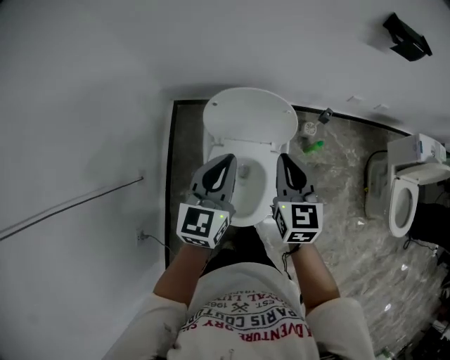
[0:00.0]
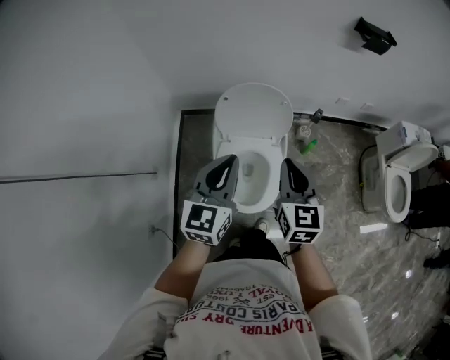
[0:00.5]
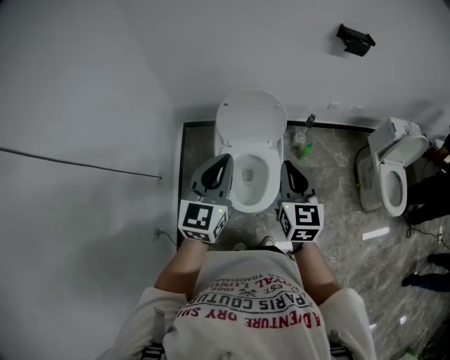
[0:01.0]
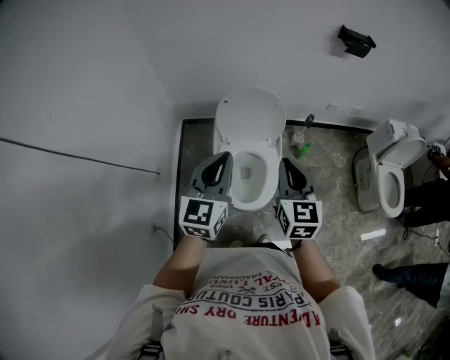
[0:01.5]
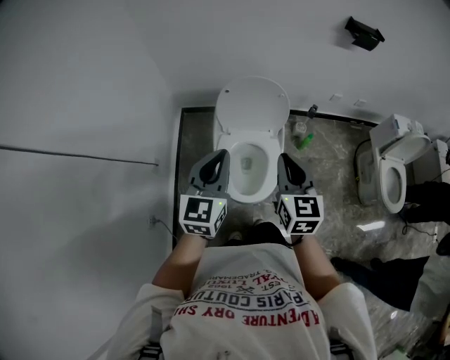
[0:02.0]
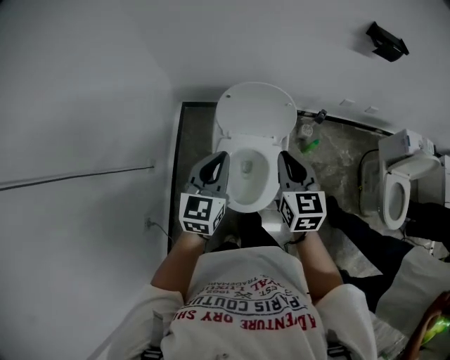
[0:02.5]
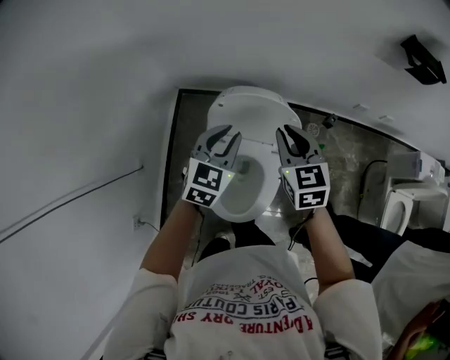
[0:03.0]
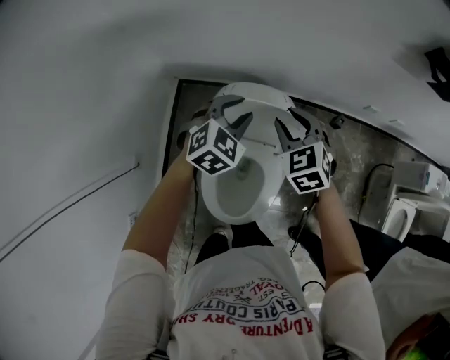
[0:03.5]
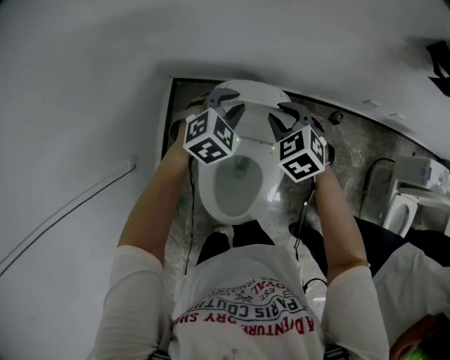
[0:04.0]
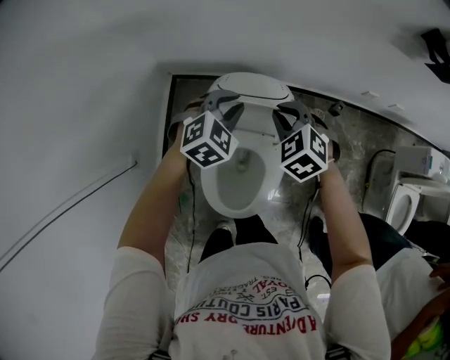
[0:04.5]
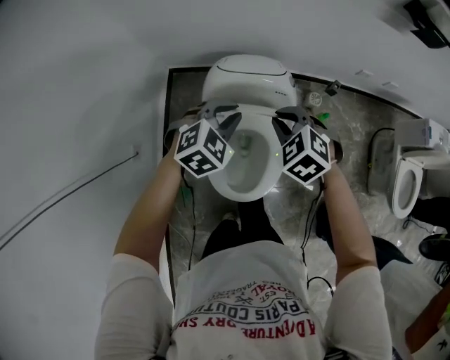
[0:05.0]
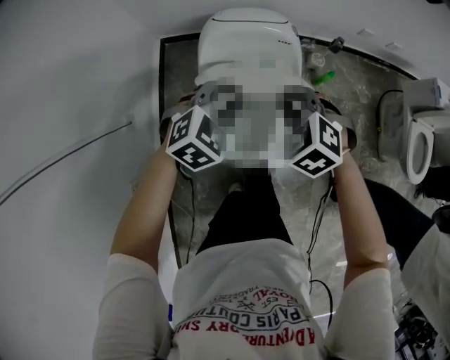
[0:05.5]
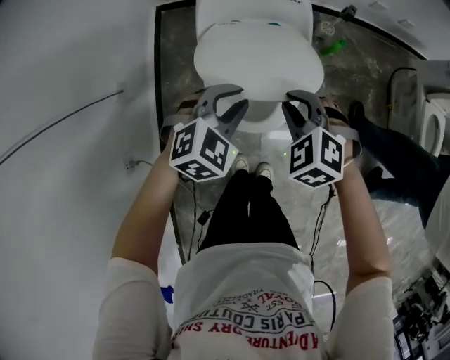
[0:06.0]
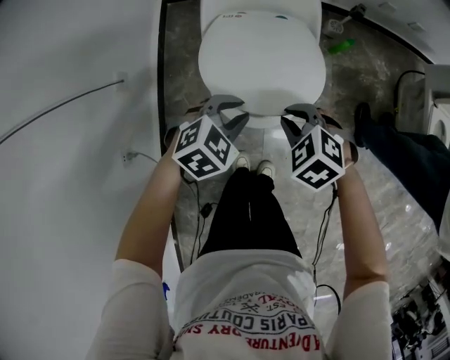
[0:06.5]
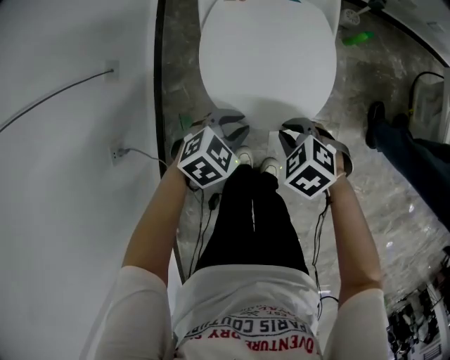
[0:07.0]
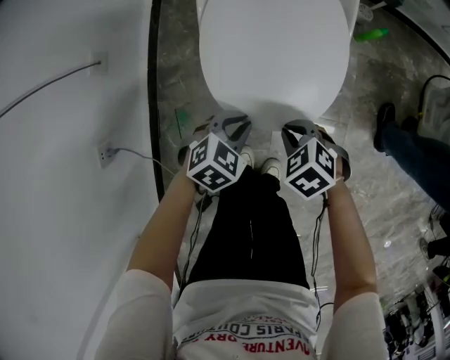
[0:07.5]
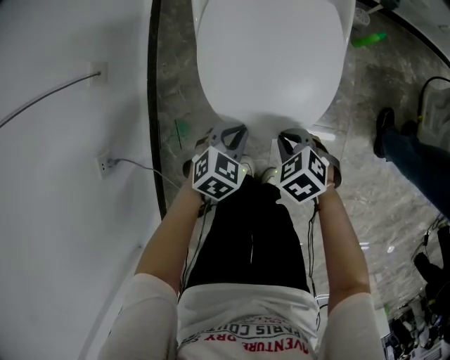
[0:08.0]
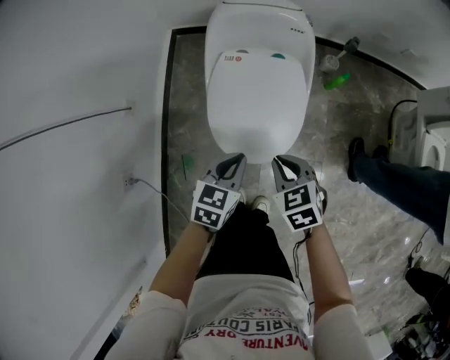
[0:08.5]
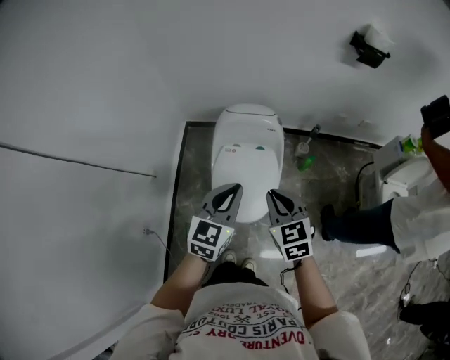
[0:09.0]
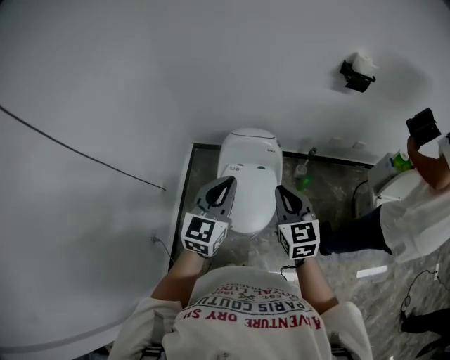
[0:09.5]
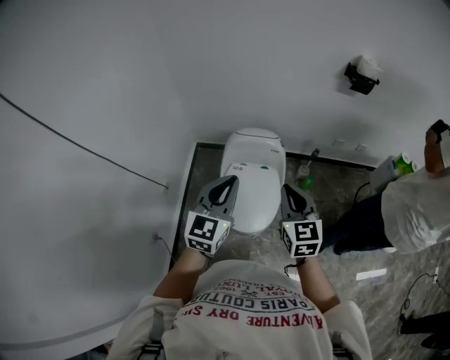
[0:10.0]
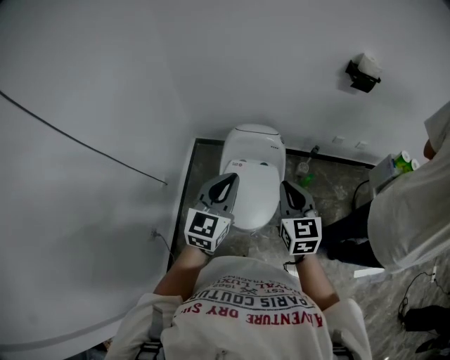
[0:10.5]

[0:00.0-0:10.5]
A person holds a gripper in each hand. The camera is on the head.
0:00.0 to 0:02.0: Both grippers travel together backward and upward, some 25 cm.
0:02.0 to 0:04.0: Both grippers are carried forward, some 40 cm. The two grippers go roughly 20 cm downward. The left gripper points its fingers about 40 degrees further downward, and opens. Meanwhile the right gripper tips its fingers downward by roughly 30 degrees, and opens up.
0:04.0 to 0:06.5: The pair of grippers is taken backward, about 40 cm. The left gripper turns by some 20 degrees.
0:06.5 to 0:08.5: The left gripper reaches some 25 cm downward, then returns, and turns by roughly 40 degrees. Meanwhile the right gripper reaches about 25 cm downward, then returns, and changes its angle by about 30 degrees.
0:08.5 to 0:10.5: The two grippers go roughly 50 cm upward. The left gripper tilts its fingers some 30 degrees upward; the right gripper points its fingers some 40 degrees further upward.

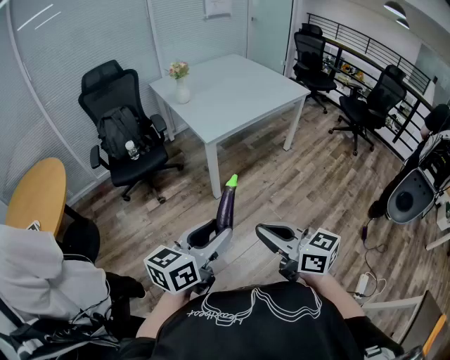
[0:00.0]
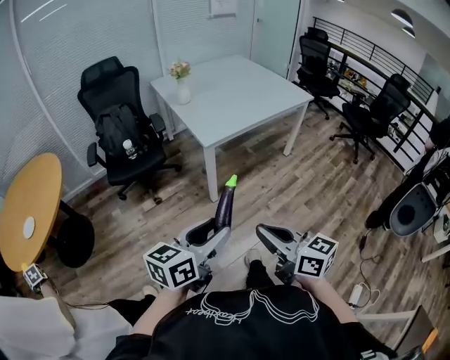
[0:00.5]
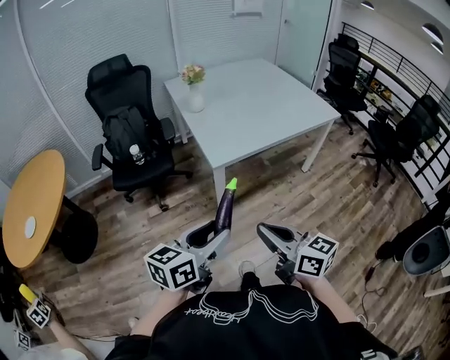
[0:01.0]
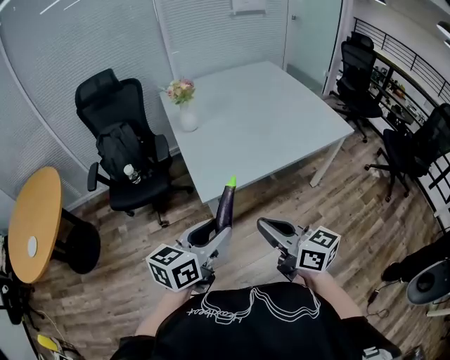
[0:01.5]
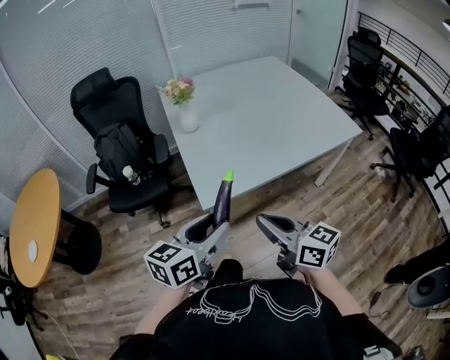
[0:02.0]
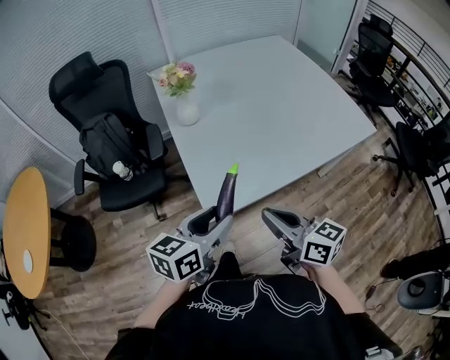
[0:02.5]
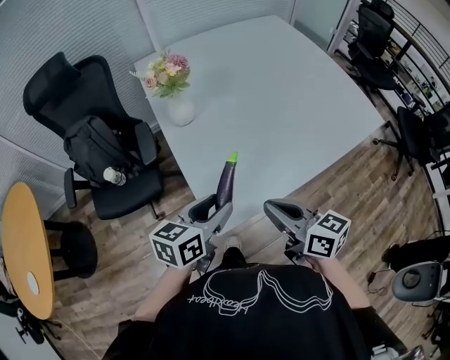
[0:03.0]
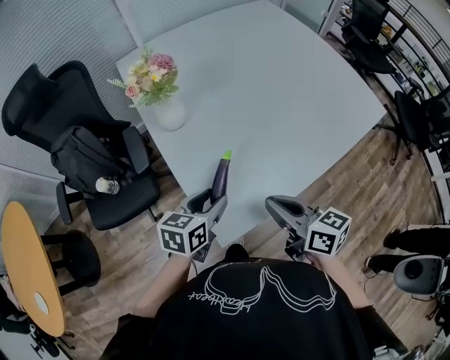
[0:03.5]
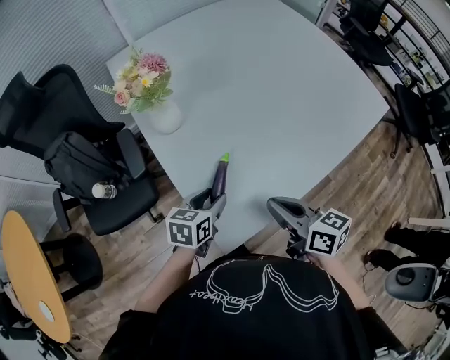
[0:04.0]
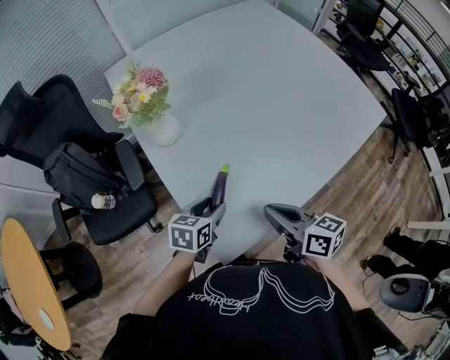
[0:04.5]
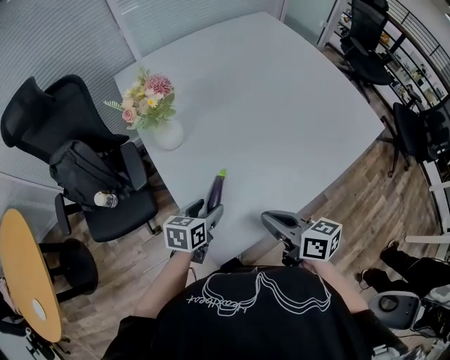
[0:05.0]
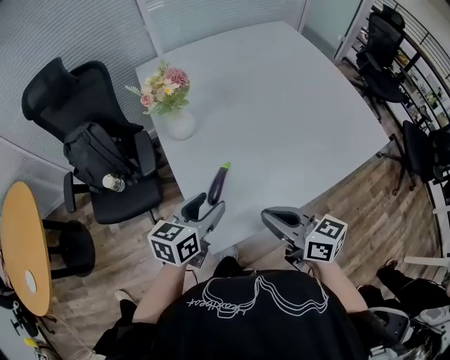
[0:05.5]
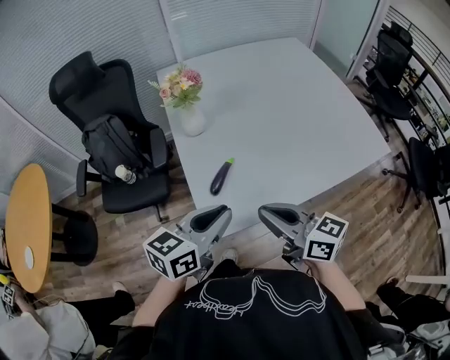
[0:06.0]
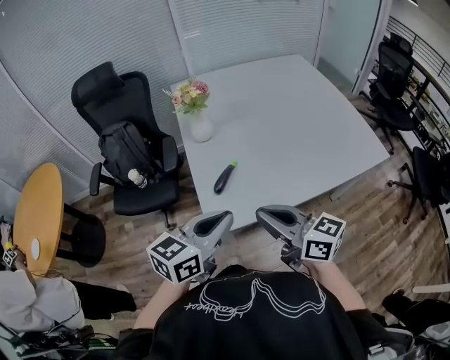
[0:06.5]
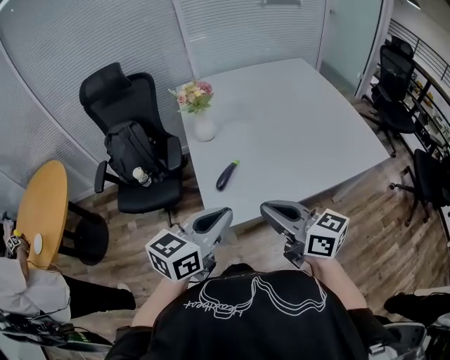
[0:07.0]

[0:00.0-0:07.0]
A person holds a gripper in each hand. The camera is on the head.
0:00.0 to 0:02.0: The pair of grippers is taken forward, some 50 cm.
0:02.0 to 0:03.5: The right gripper shifts approximately 25 cm forward, and rotates some 20 degrees, while the left gripper shifts some 35 cm forward and downward, and swivels about 20 degrees.
0:03.5 to 0:05.0: The left gripper goes about 5 cm downward.
0:05.0 to 0:07.0: The right gripper is displaced upward and backward by approximately 20 cm, and turns by approximately 30 degrees, while the left gripper moves upward and backward, roughly 35 cm, swivels roughly 30 degrees, and closes its fingers.

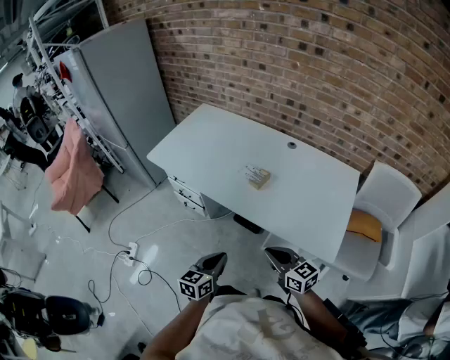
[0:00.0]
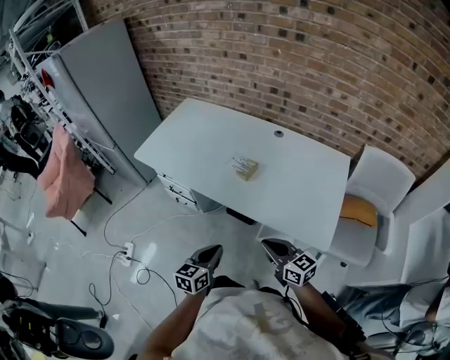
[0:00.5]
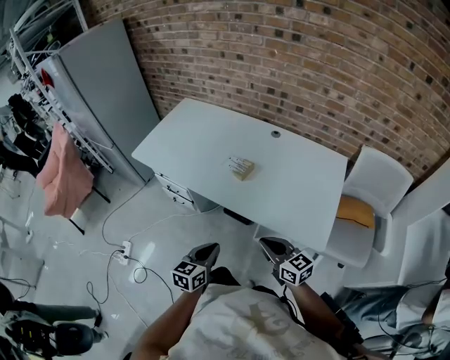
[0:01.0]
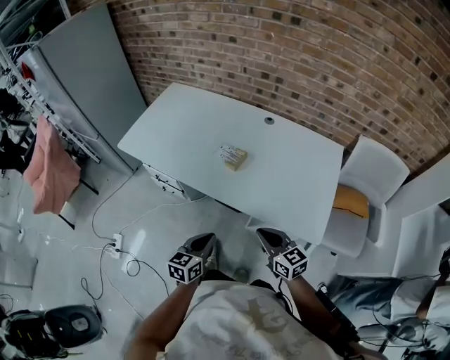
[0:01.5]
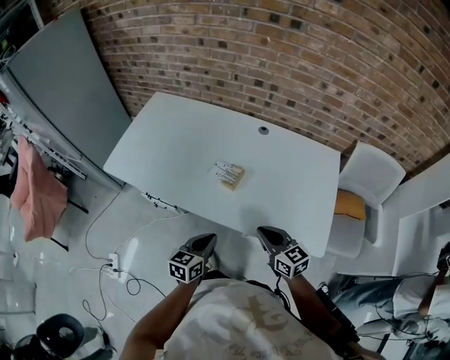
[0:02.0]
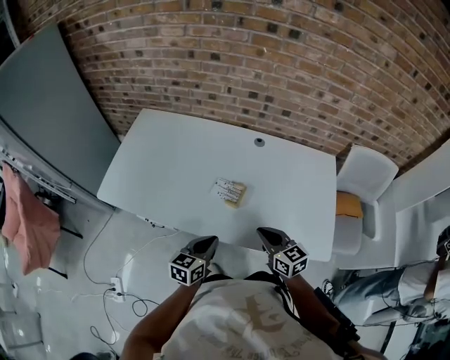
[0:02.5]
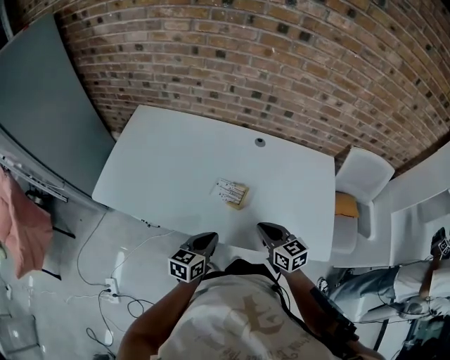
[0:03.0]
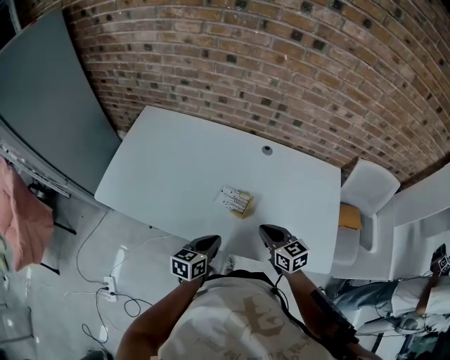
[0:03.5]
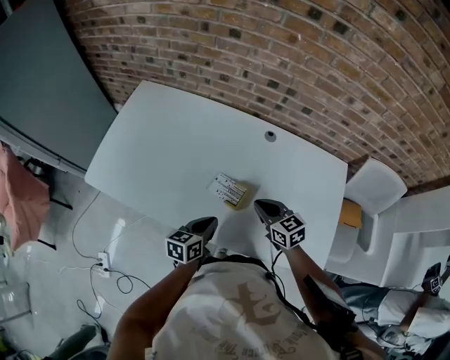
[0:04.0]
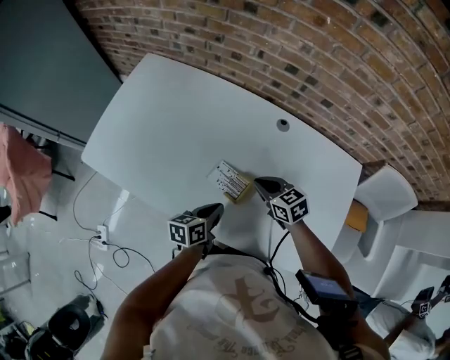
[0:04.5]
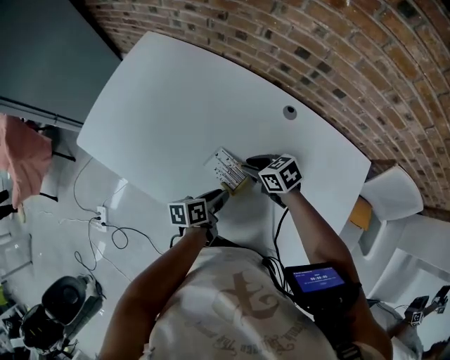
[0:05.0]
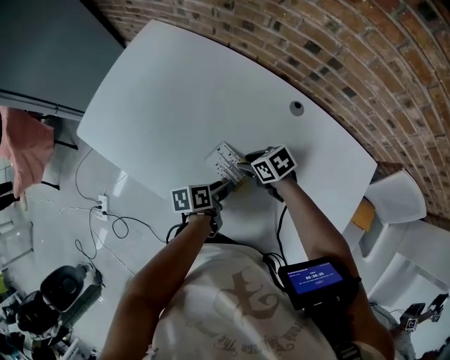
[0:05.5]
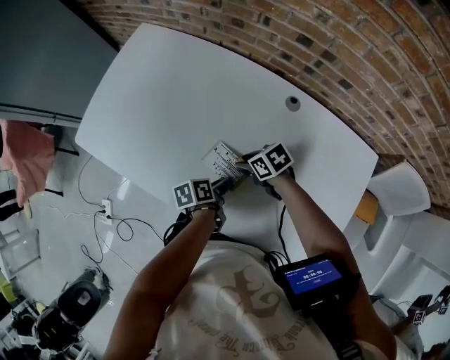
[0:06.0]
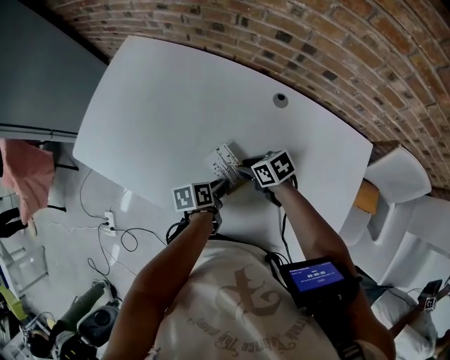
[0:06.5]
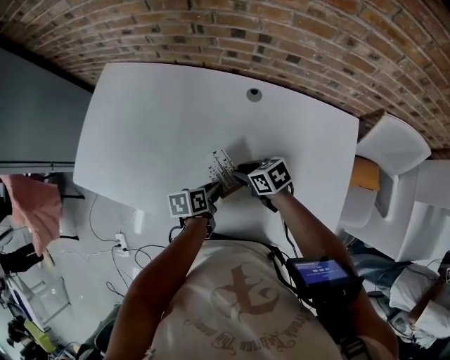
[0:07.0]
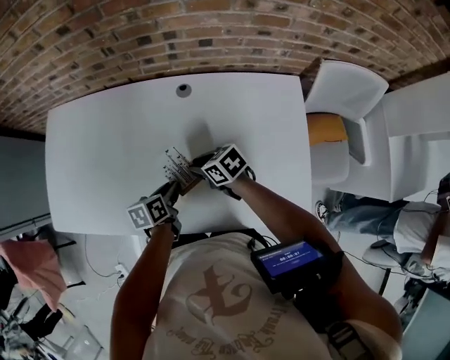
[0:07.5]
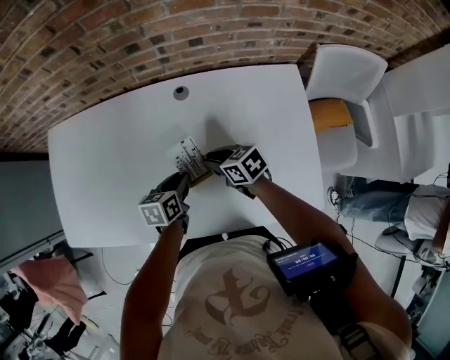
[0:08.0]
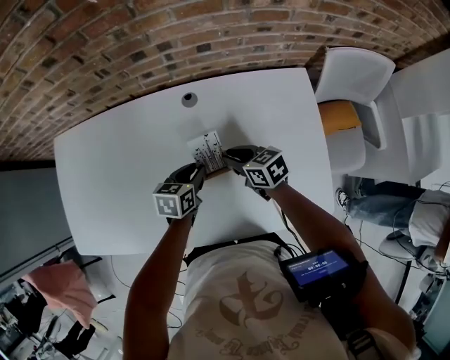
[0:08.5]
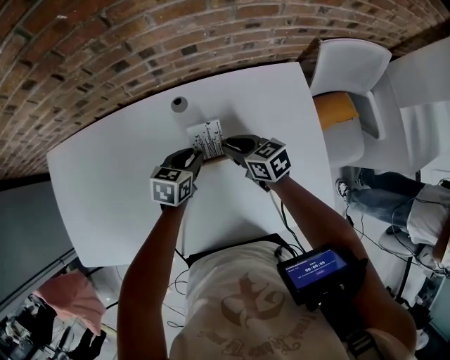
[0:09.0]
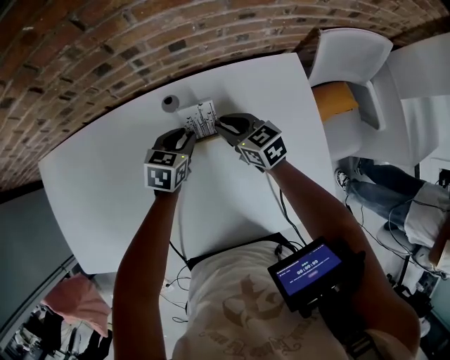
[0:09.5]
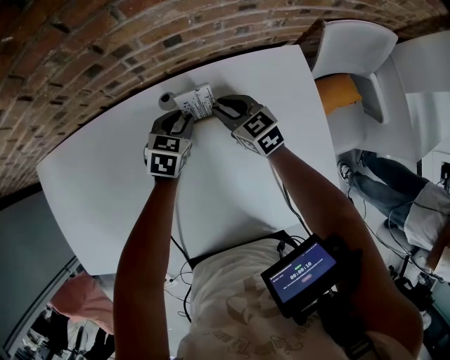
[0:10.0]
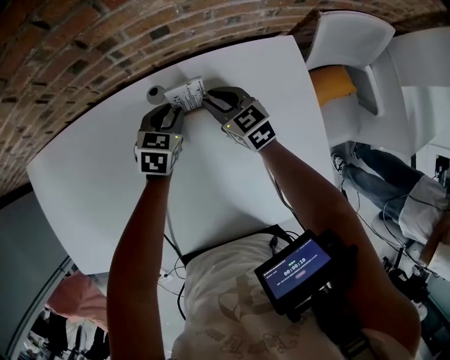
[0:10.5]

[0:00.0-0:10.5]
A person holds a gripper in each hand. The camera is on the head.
0:00.0 to 0:02.0: The two grippers go approximately 15 cm forward.
0:02.0 to 0:04.0: Both grippers move forward, some 20 cm.
0:04.0 to 0:06.5: The grippers both shift downward by about 10 cm. The left gripper rotates about 40 degrees, and opens its fingers. Meanwhile the right gripper rotates roughly 40 degrees, and opens.
0:06.5 to 0:08.5: The left gripper ends up roughly 15 cm from where it was, and rolls clockwise, seen from behind, by some 50 degrees. Meanwhile the right gripper ends up approximately 15 cm from where it was, and rotates approximately 40 degrees.
0:08.5 to 0:10.5: Both grippers travel together forward, some 15 cm. The right gripper swivels about 30 degrees, while the left gripper rotates approximately 30 degrees.
